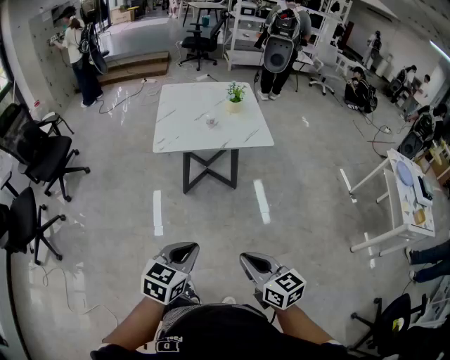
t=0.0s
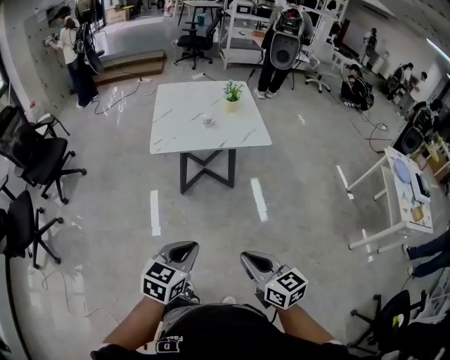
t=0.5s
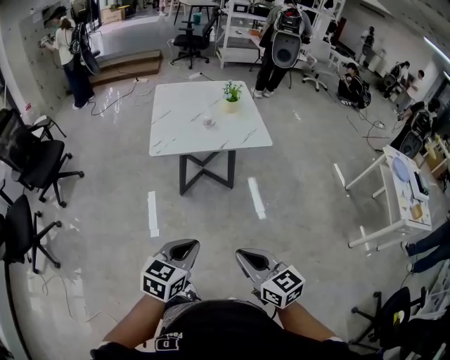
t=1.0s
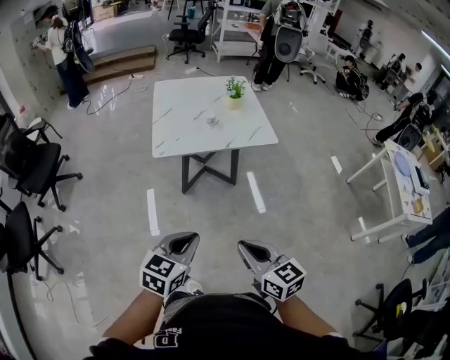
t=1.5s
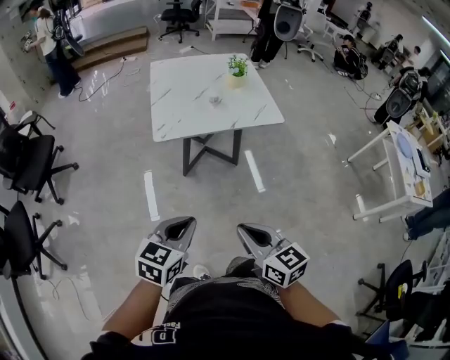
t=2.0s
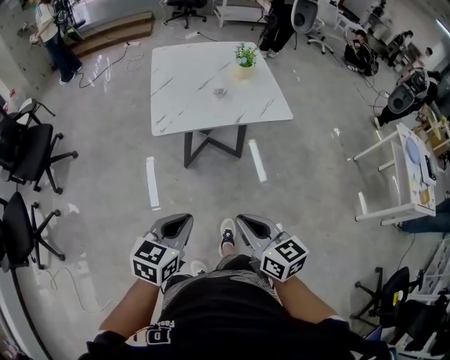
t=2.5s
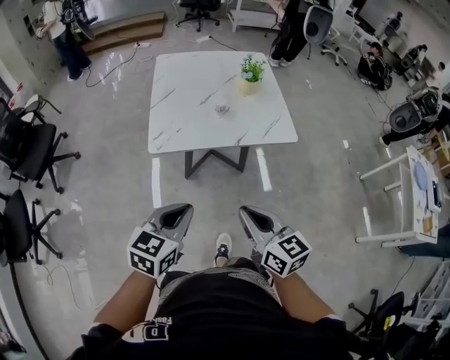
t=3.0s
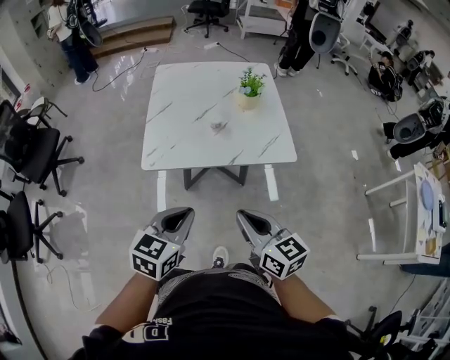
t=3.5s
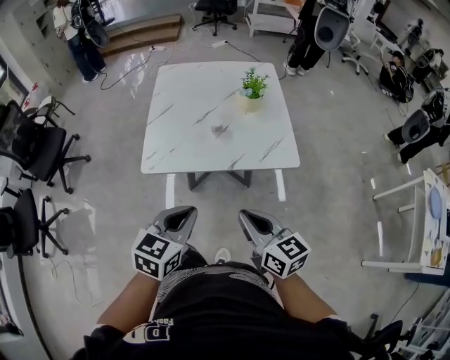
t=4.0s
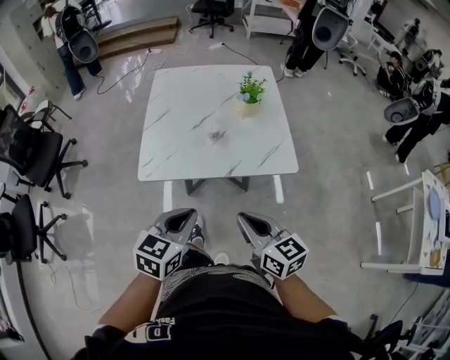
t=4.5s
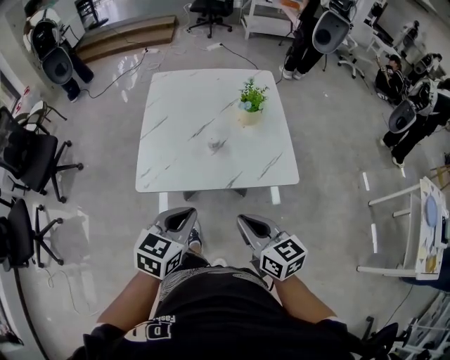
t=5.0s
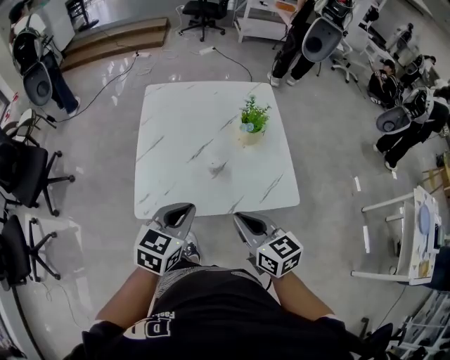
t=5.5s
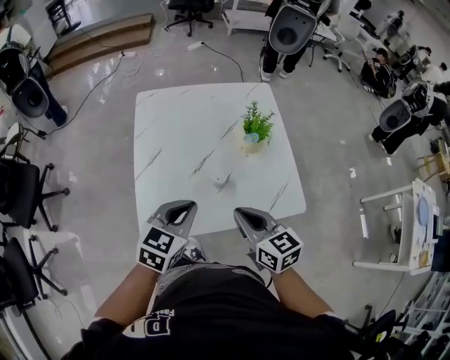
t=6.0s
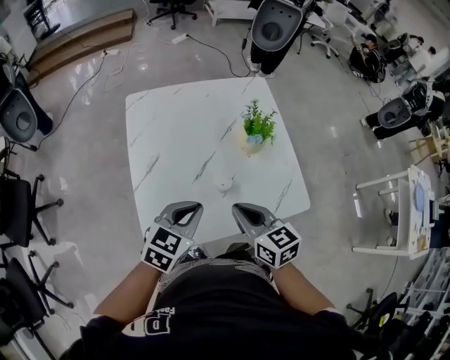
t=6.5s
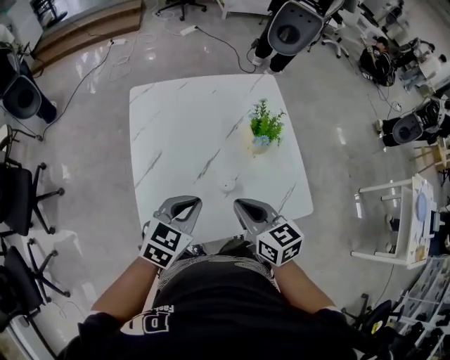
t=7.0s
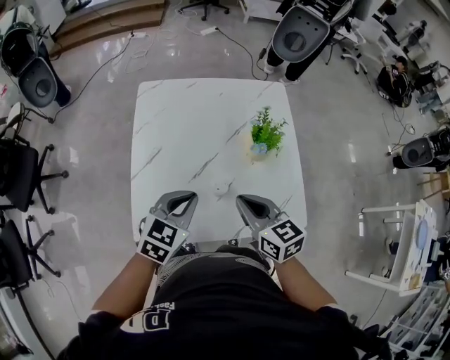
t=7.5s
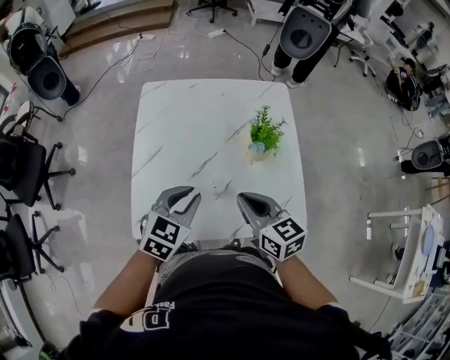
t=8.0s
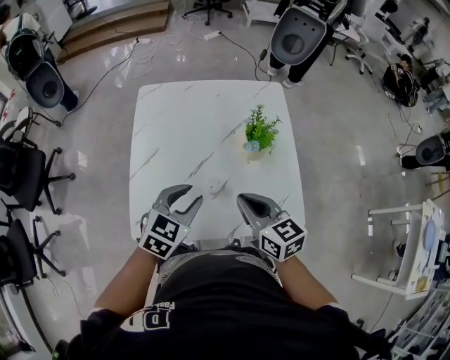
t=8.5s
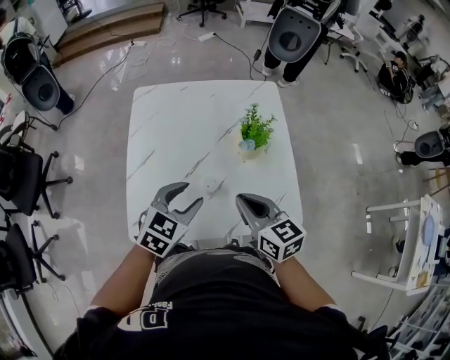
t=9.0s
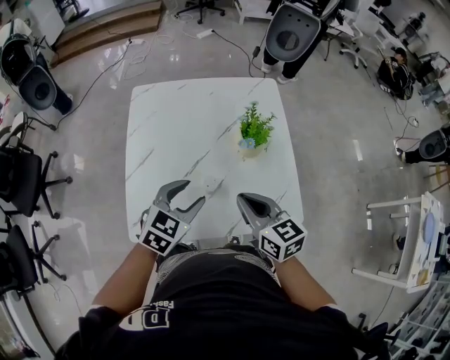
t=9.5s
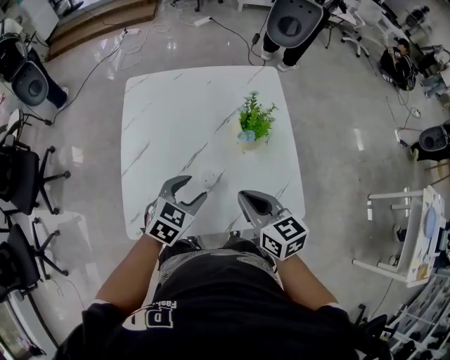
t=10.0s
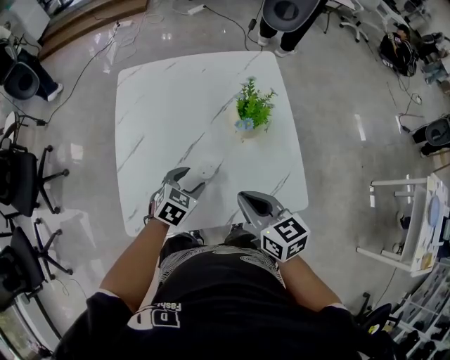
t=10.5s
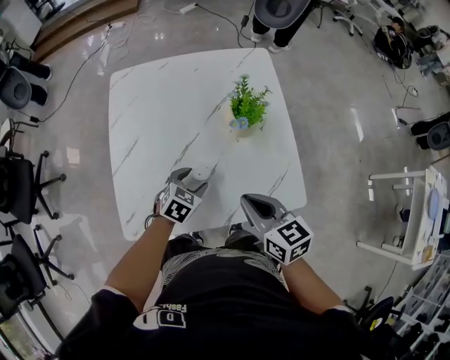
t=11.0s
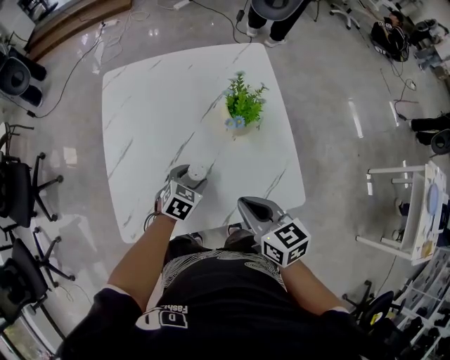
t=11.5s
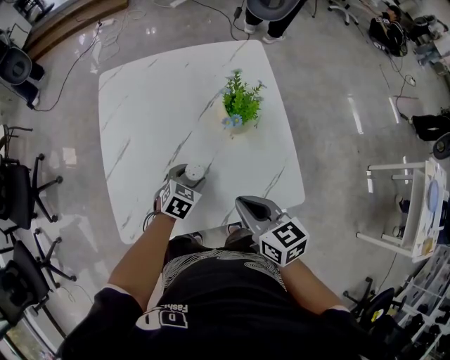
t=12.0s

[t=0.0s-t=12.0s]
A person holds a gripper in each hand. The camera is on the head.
t=0.0s to t=2.0s: Both grippers move to the left and forward, approximately 15 cm.
t=2.0s to t=4.0s: The two grippers go some 30 cm forward and to the right.
t=4.0s to t=6.0s: The two grippers go about 25 cm forward.
t=6.0s to t=8.0s: Both grippers move forward, approximately 10 cm.
t=8.0s to t=10.0s: The left gripper travels downward by some 5 cm, and opens.
t=10.0s to t=12.0s: The right gripper shifts by roughly 5 cm; the left gripper heads downward, covering roughly 15 cm.

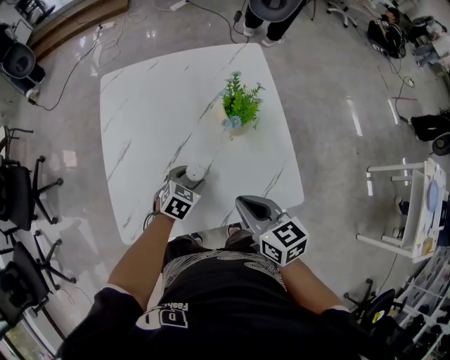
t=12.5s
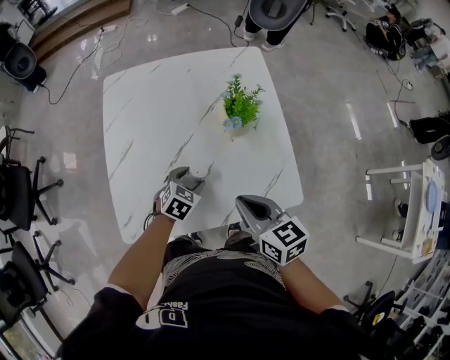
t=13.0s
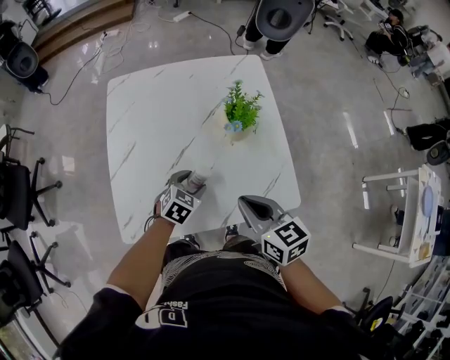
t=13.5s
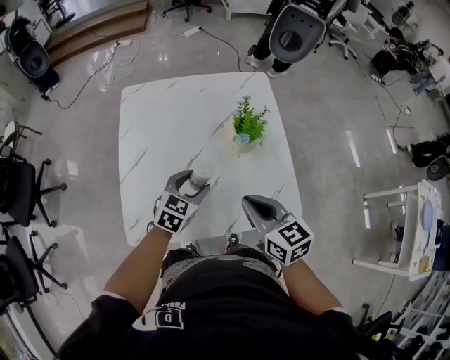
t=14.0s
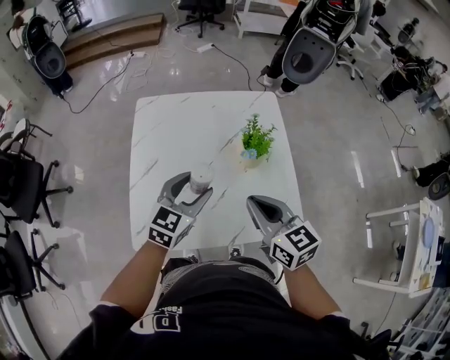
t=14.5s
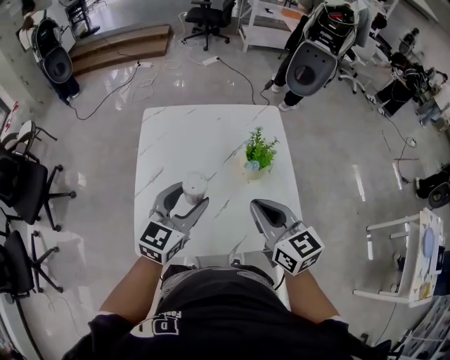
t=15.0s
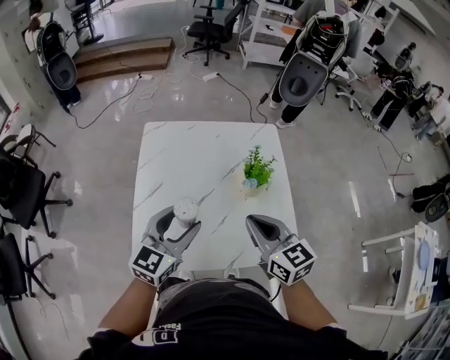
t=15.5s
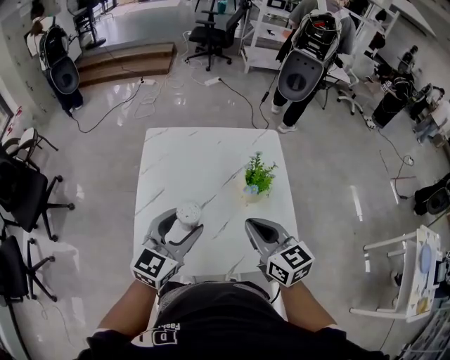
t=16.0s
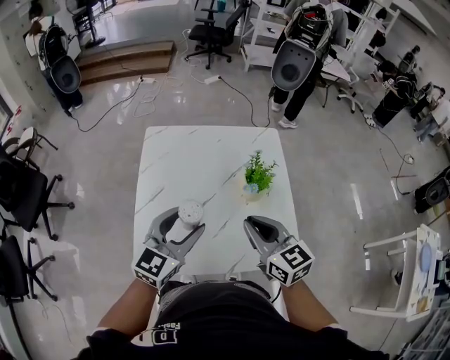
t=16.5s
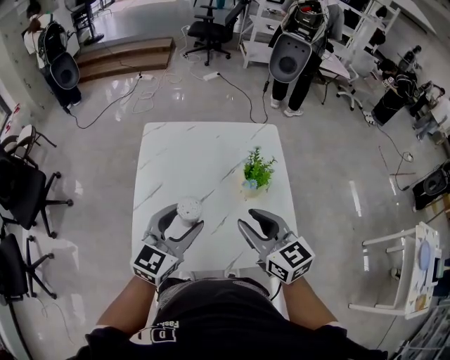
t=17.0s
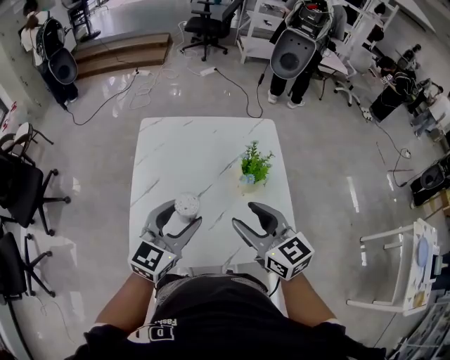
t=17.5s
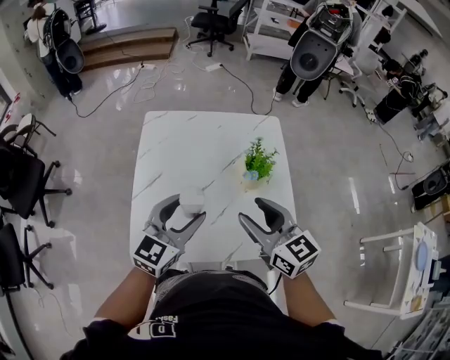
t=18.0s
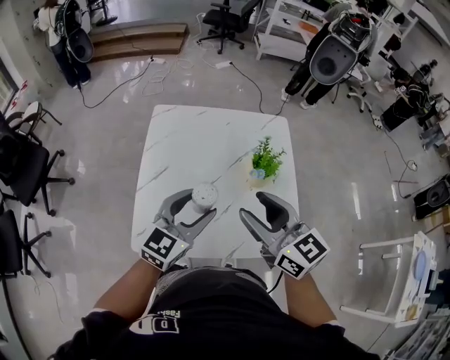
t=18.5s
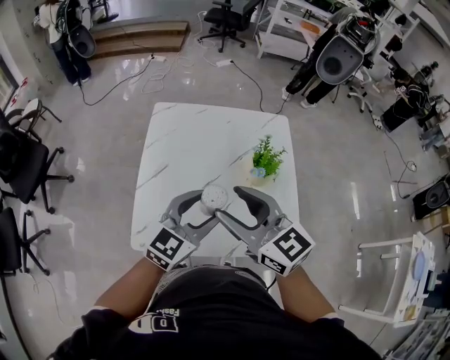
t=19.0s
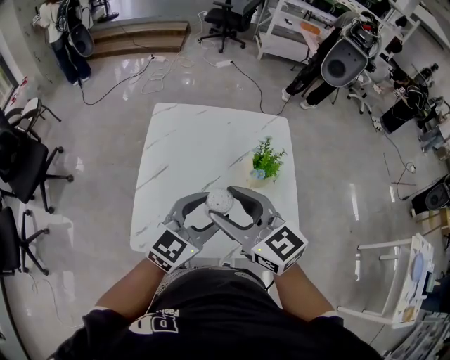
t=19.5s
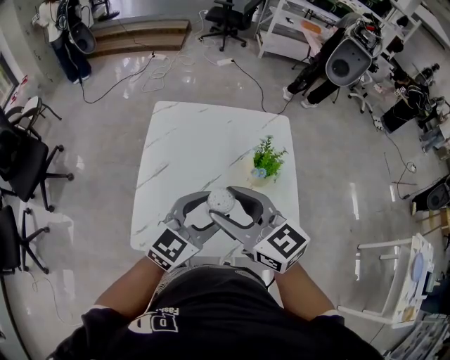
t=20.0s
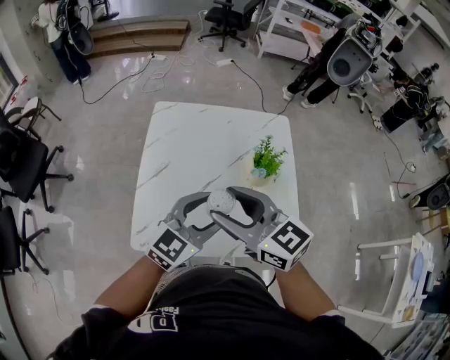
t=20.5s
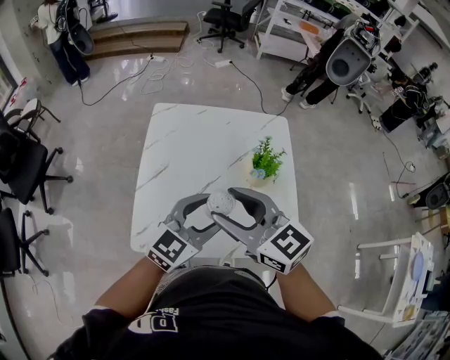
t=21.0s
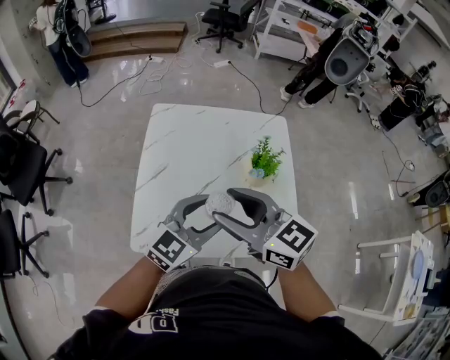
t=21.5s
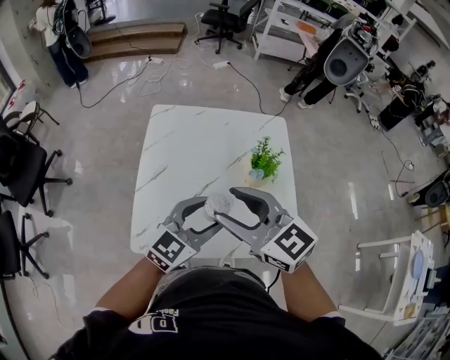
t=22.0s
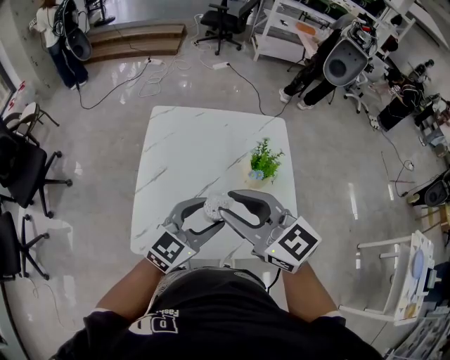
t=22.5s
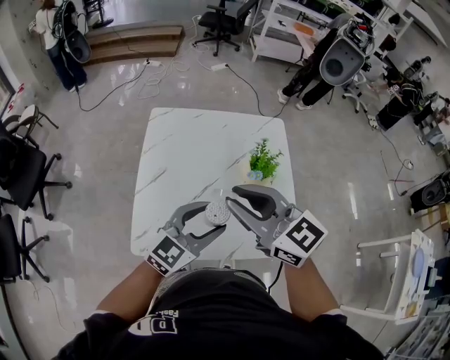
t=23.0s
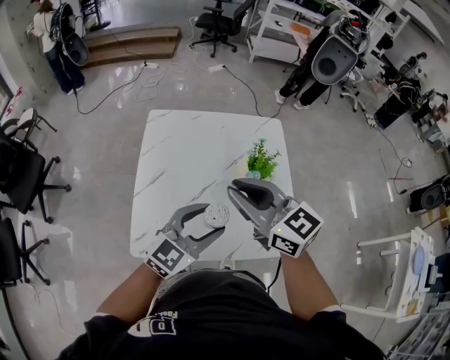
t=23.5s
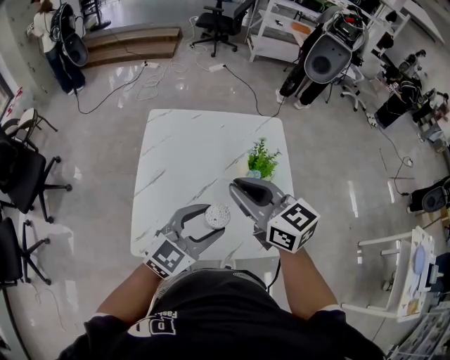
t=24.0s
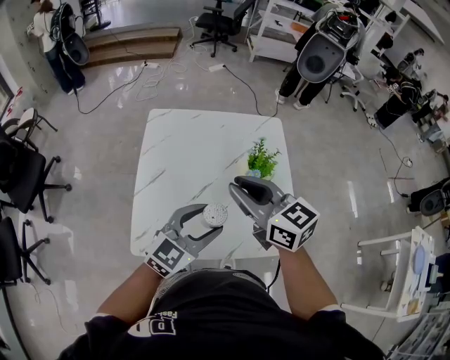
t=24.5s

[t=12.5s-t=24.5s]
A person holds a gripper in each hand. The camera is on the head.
t=12.5s to t=14.5s: The right gripper shifts some 10 cm upward, while the left gripper is displaced upward by some 20 cm, and angles its fingers upward, by some 30 degrees.
t=14.5s to t=16.5s: The left gripper heads upward, covering roughly 5 cm.
t=16.5s to t=18.5s: The right gripper goes approximately 5 cm upward, and opens up.
t=18.5s to t=20.5s: The right gripper is displaced to the left by approximately 5 cm.
t=20.5s to t=22.5s: The right gripper closes up.
t=22.5s to t=24.5s: The right gripper changes place by roughly 5 cm.

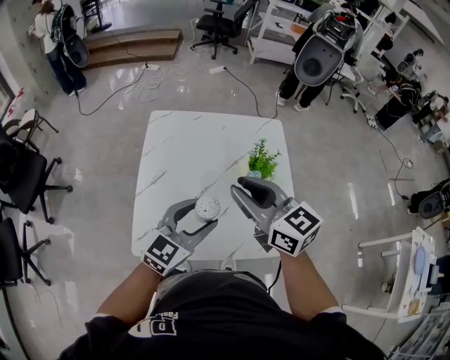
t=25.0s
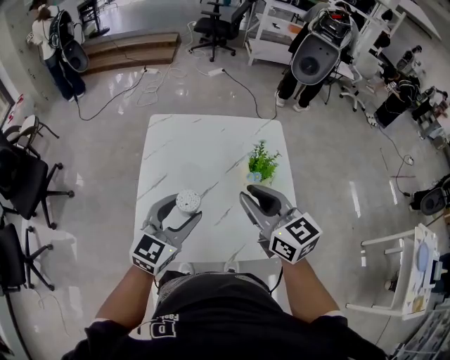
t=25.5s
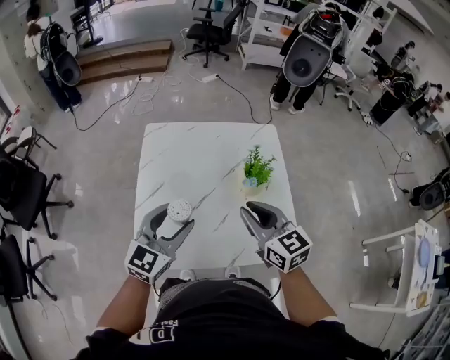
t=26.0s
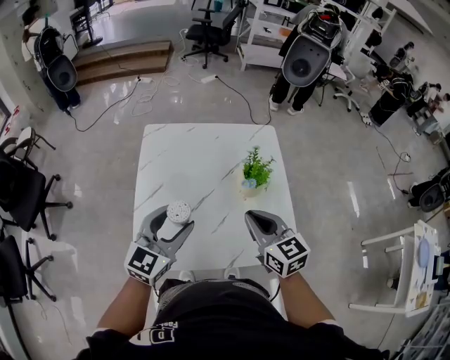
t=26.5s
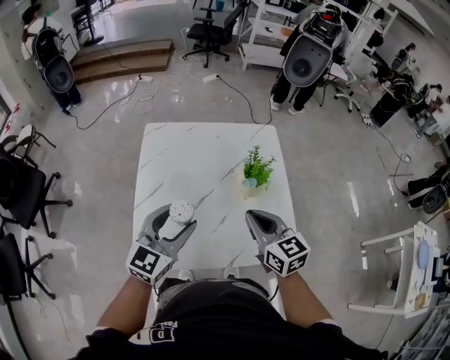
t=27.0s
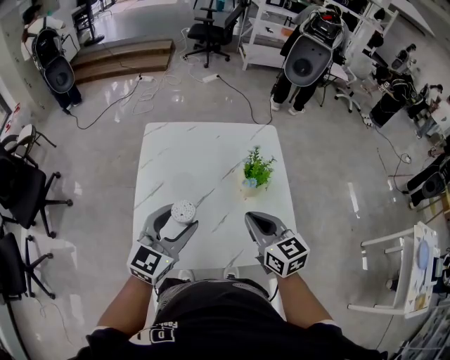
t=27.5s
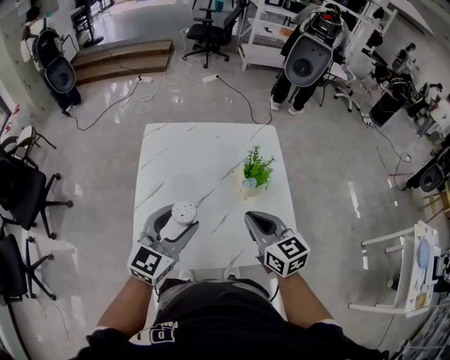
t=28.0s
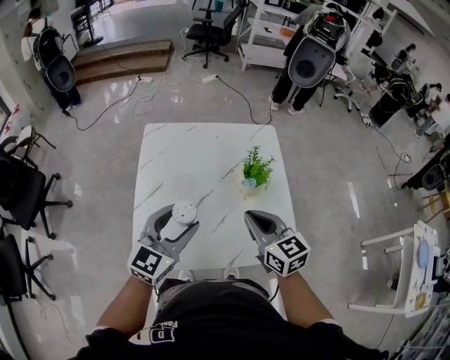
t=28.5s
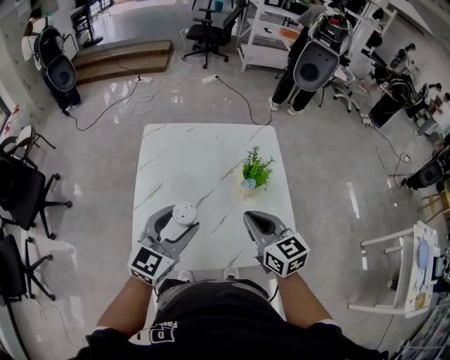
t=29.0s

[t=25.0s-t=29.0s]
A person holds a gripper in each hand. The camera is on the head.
t=25.0s to t=27.0s: The right gripper moves downward and to the right, roughly 10 cm. Meanwhile the left gripper changes place by approximately 5 cm.
t=27.0s to t=29.0s: Both grippers stay put.
